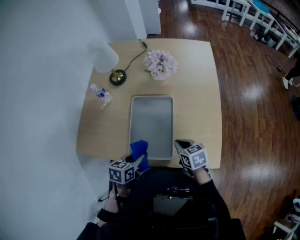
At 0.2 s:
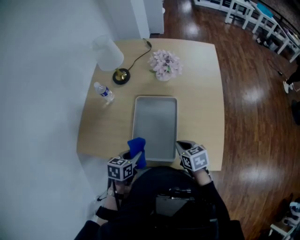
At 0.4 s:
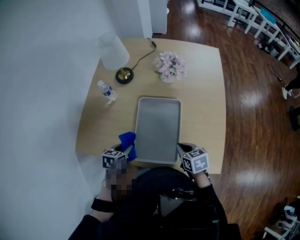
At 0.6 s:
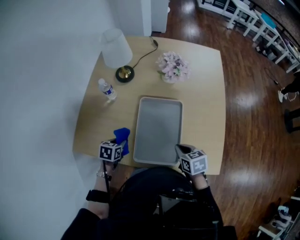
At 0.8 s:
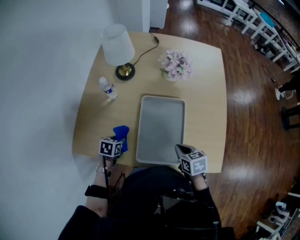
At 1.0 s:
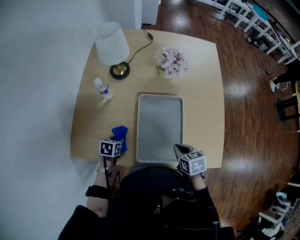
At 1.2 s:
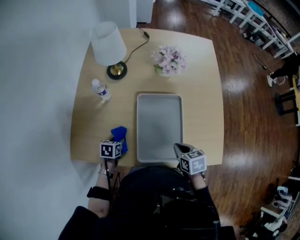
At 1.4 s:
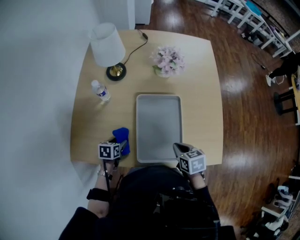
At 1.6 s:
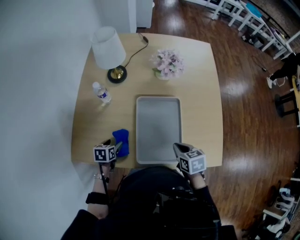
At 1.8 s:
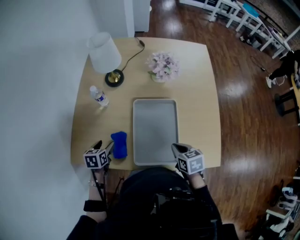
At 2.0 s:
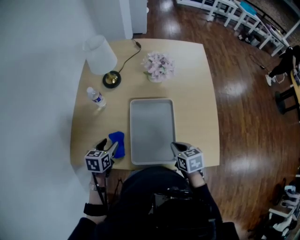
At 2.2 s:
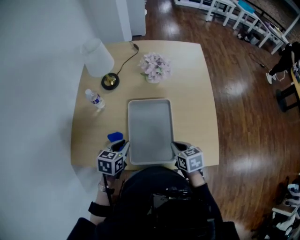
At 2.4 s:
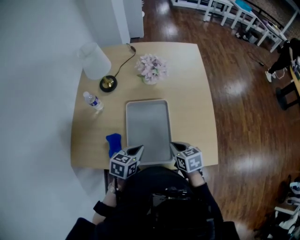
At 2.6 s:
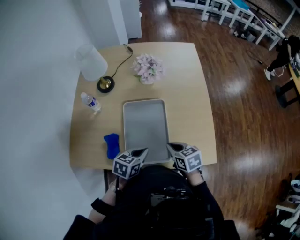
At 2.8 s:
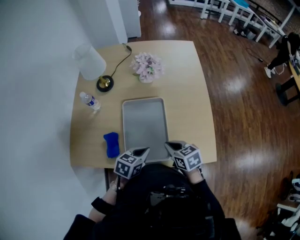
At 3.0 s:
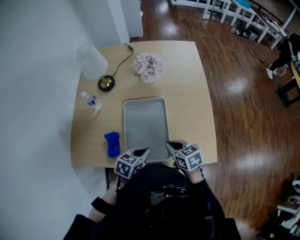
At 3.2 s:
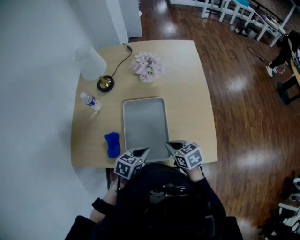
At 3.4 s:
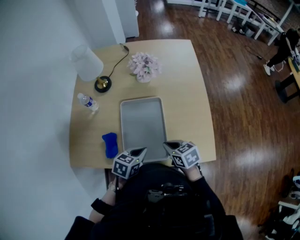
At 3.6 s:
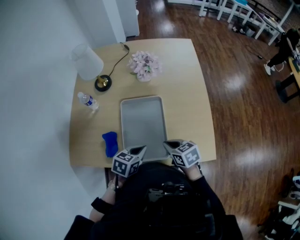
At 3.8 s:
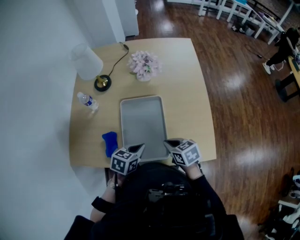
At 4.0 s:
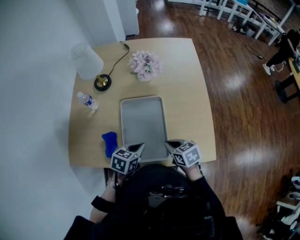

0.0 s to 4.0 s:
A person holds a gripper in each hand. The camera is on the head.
0.0 to 1.4 s: The right gripper moves to the left, approximately 10 cm. Meanwhile the left gripper travels to the left, downward and forward by some 25 cm, and opens its fingers.
1.4 to 2.6 s: The left gripper goes approximately 25 cm to the right and upward, turns by some 30 degrees, and closes up; the right gripper shifts by about 5 cm.
2.6 to 4.0 s: The grippers make only small movements.

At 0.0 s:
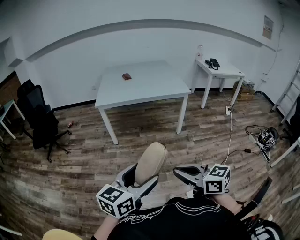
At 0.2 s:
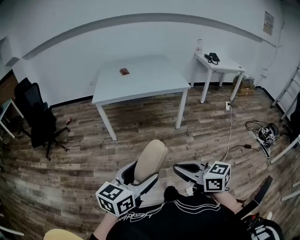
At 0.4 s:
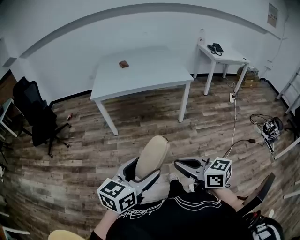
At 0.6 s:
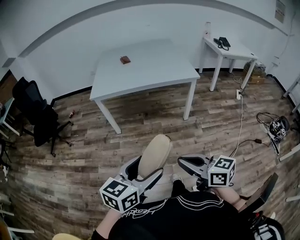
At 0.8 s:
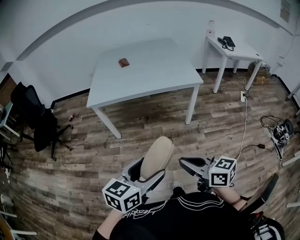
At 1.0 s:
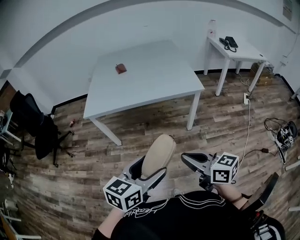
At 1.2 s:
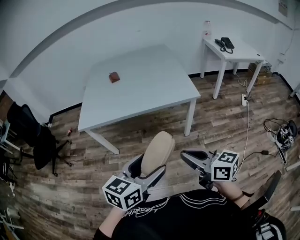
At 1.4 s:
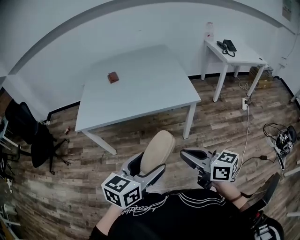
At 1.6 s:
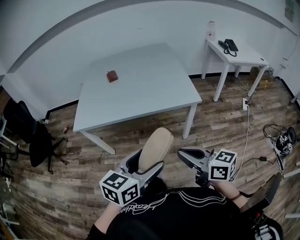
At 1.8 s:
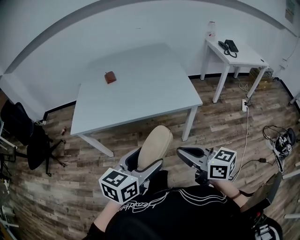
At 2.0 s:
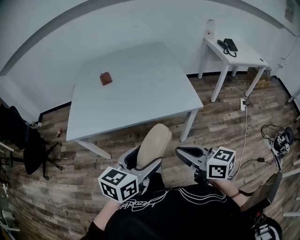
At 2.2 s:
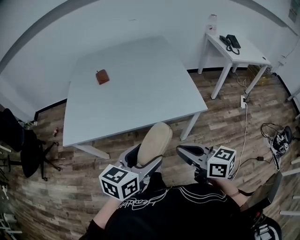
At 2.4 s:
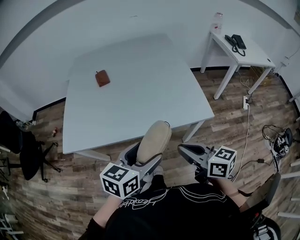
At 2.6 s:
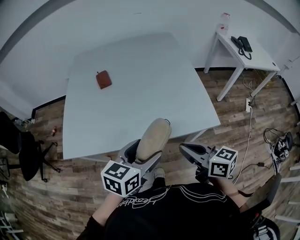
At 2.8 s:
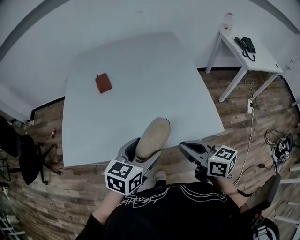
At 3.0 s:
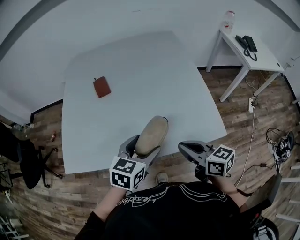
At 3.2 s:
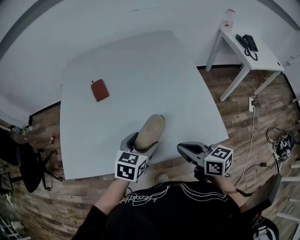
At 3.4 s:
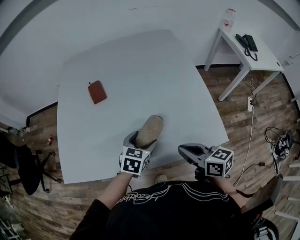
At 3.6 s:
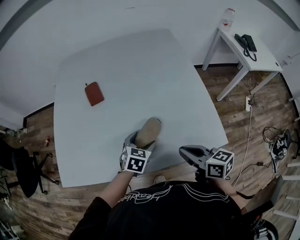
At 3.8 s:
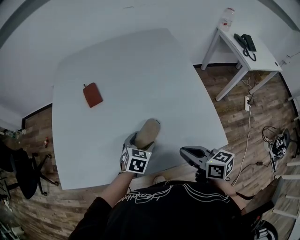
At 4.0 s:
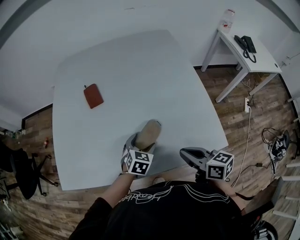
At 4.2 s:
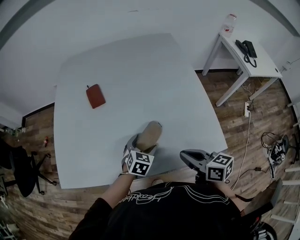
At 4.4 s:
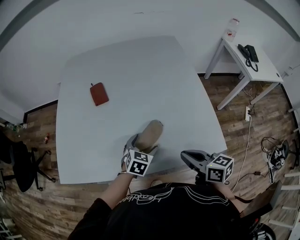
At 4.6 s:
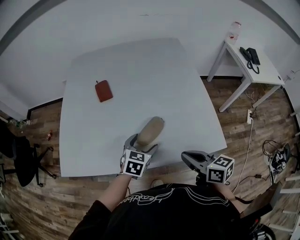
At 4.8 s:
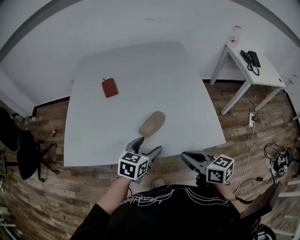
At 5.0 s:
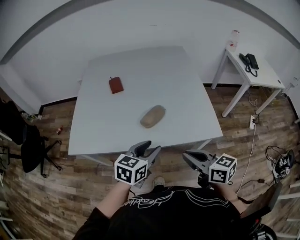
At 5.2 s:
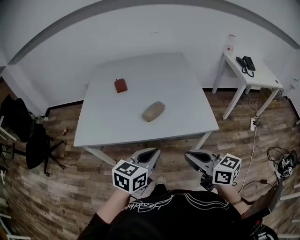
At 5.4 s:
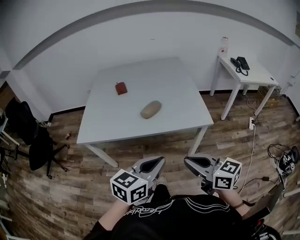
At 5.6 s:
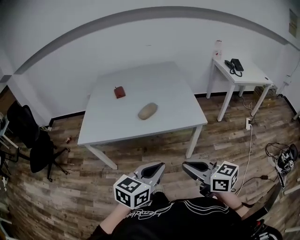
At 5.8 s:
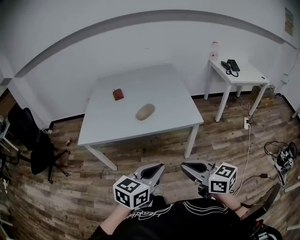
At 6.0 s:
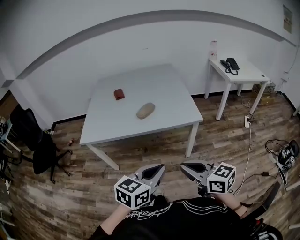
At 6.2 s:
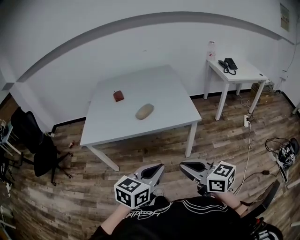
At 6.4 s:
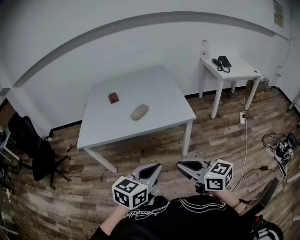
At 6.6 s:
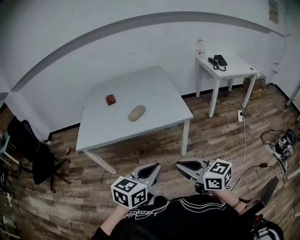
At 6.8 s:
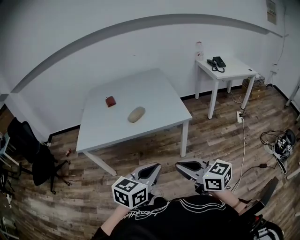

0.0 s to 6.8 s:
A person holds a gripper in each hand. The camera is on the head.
0.0 to 1.4 s: Both grippers travel together forward and to the right, approximately 40 cm.
1.4 to 2.8 s: Both grippers travel together forward, approximately 30 cm.
2.8 to 4.0 s: The right gripper travels forward and downward by about 10 cm. Meanwhile the left gripper shifts about 25 cm downward and forward, and swivels about 30 degrees.
4.0 to 5.4 s: Both grippers move backward and upward, approximately 35 cm. The left gripper tips its fingers upward by about 30 degrees, and closes, while the right gripper swivels approximately 30 degrees.
5.4 to 6.8 s: The two grippers go roughly 10 cm backward.

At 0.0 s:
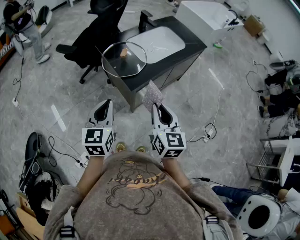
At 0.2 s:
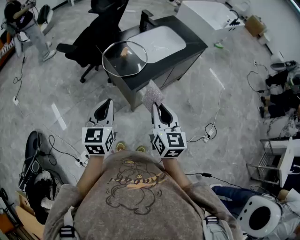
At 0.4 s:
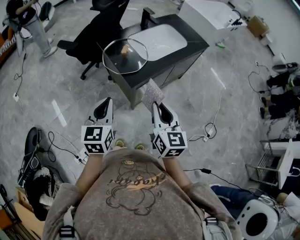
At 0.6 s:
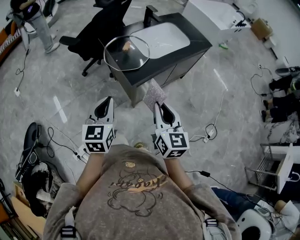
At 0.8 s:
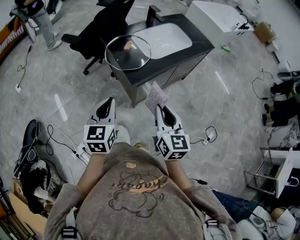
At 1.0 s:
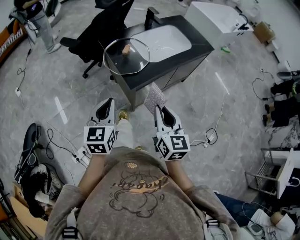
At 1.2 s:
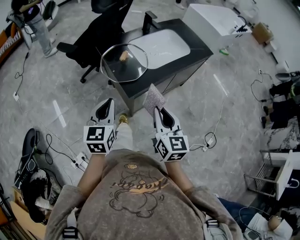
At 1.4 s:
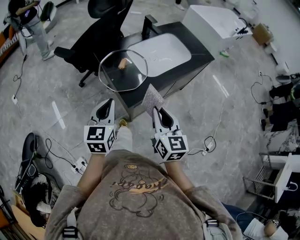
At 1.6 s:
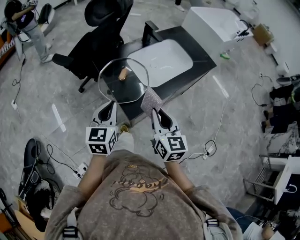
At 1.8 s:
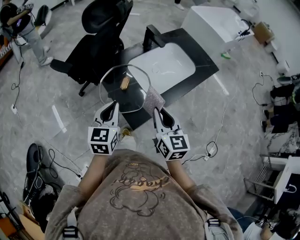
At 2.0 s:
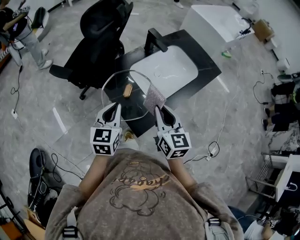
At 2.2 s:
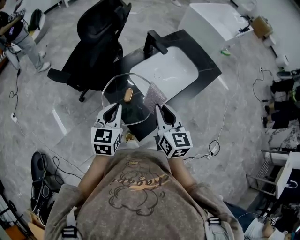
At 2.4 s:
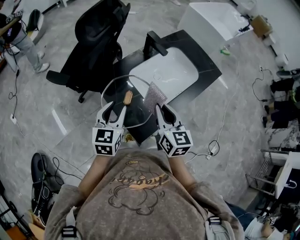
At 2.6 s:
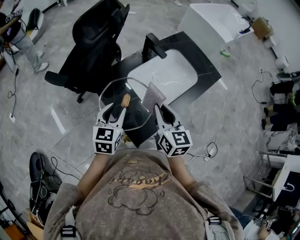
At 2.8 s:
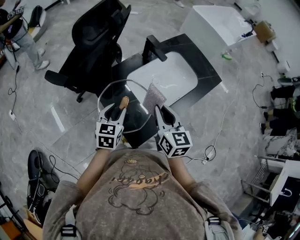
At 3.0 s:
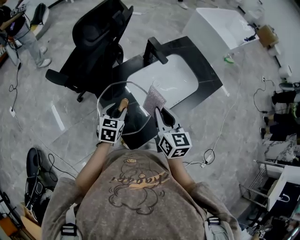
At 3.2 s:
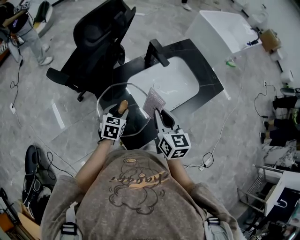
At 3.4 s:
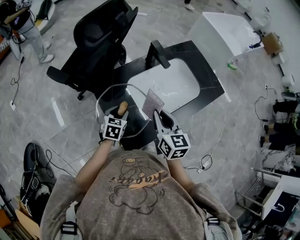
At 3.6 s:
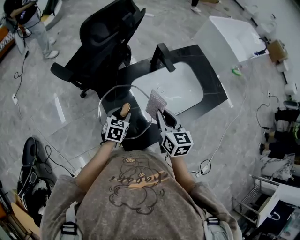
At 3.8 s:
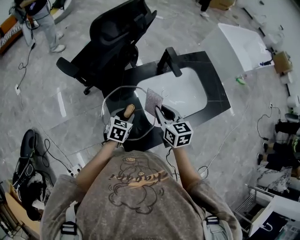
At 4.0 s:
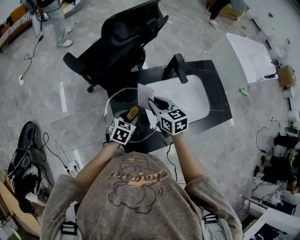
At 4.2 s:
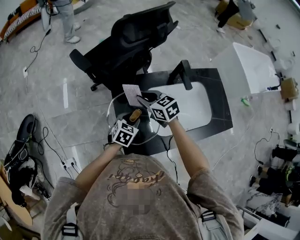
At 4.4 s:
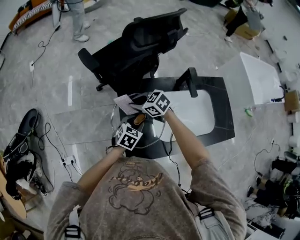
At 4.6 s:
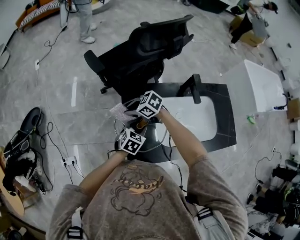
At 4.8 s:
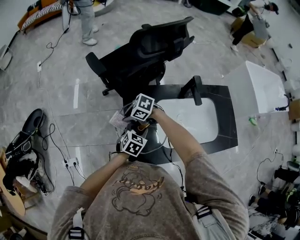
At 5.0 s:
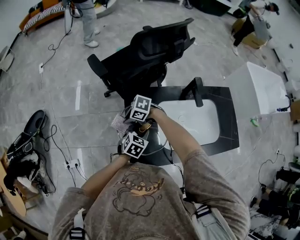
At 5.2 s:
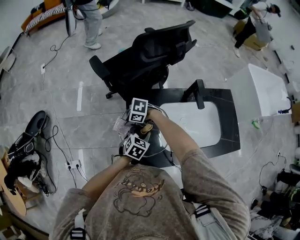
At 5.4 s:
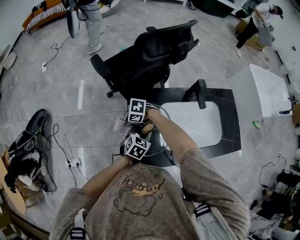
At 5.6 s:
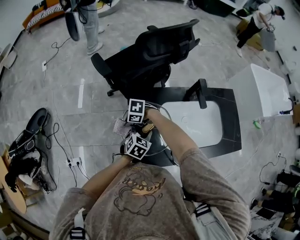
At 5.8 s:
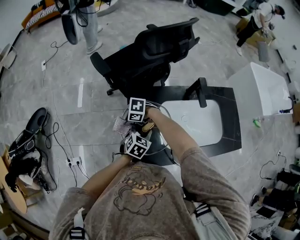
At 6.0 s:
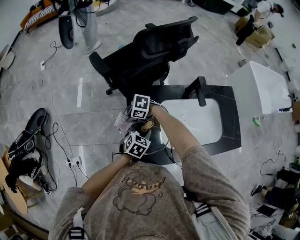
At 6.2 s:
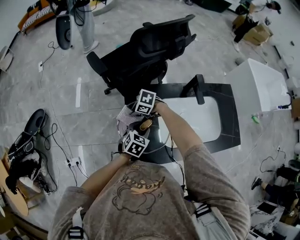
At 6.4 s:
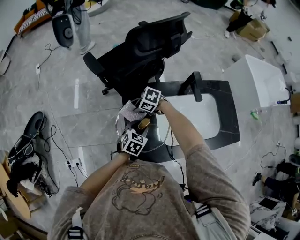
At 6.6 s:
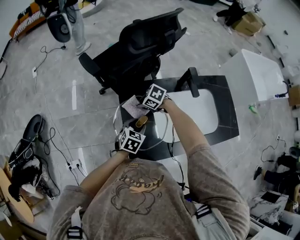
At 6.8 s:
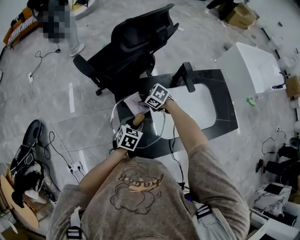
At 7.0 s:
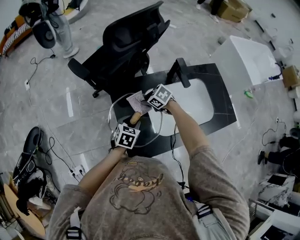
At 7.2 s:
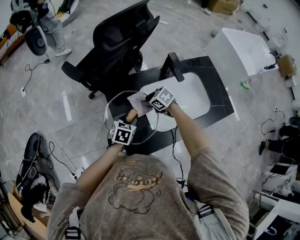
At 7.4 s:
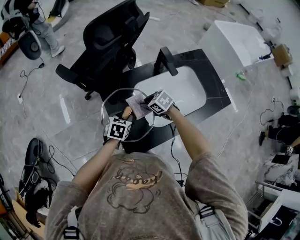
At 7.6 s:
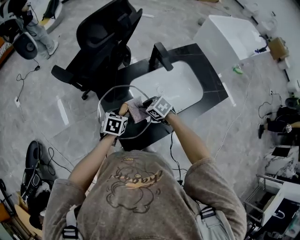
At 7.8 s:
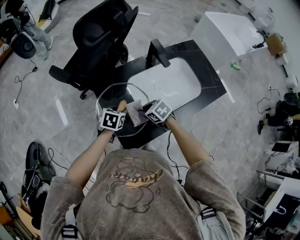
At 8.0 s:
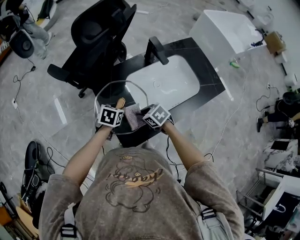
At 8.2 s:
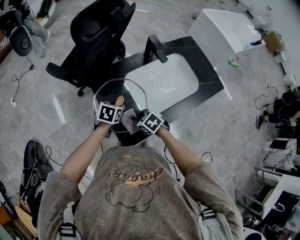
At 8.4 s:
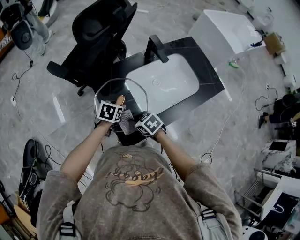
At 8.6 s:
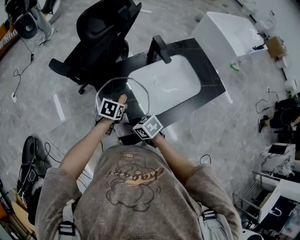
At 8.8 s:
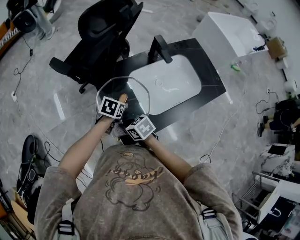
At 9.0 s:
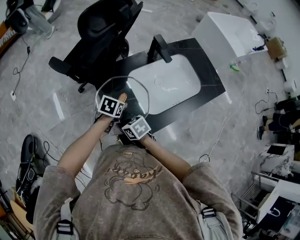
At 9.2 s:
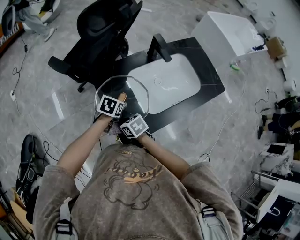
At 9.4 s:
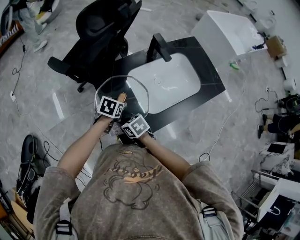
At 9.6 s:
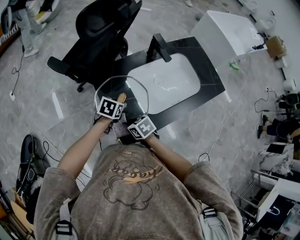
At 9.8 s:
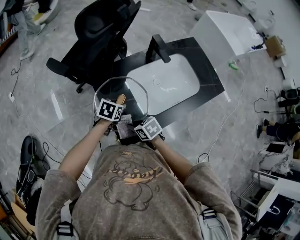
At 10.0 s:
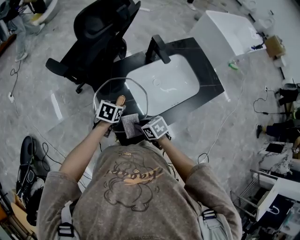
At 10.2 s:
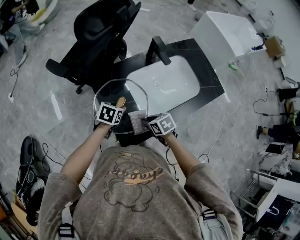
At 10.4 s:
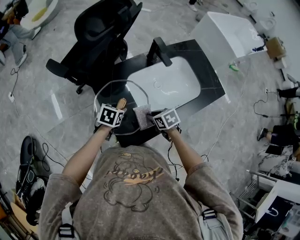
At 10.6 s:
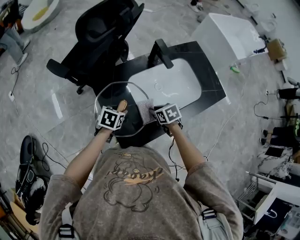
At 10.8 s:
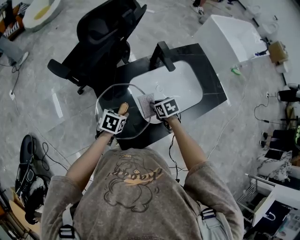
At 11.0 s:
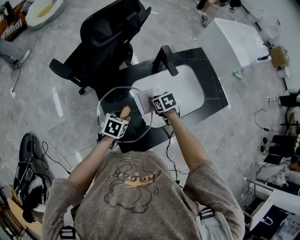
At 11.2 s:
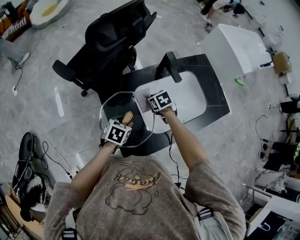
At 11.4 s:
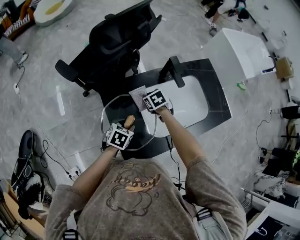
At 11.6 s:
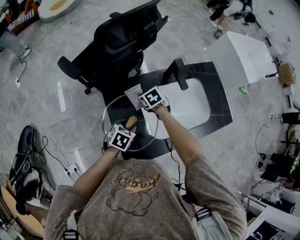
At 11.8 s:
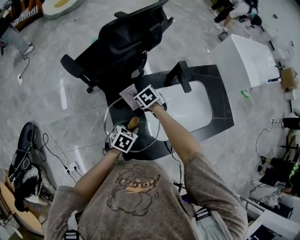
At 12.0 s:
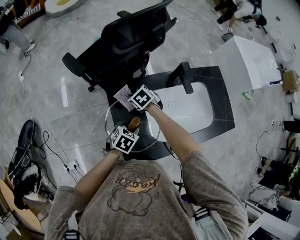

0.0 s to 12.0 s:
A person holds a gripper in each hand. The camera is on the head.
0.0 to 1.6 s: The two grippers go some 20 cm forward.
1.6 to 3.0 s: The left gripper goes approximately 20 cm forward and downward, swivels about 20 degrees, and opens its fingers. Meanwhile the right gripper shifts some 20 cm forward.
3.0 to 4.4 s: The right gripper ends up roughly 25 cm from where it was, and turns by approximately 80 degrees. Meanwhile the left gripper heads downward, covering some 5 cm.
4.4 to 6.0 s: The right gripper heads downward, covering some 10 cm, and changes its angle by about 40 degrees.
6.0 to 7.6 s: The right gripper shifts by about 20 cm, and turns by about 50 degrees.
7.6 to 9.0 s: The right gripper is displaced to the left and backward by approximately 15 cm.
9.0 to 10.4 s: The right gripper heads to the right, covering roughly 20 cm.
10.4 to 12.0 s: The right gripper goes about 25 cm forward and to the left, and turns by some 30 degrees.
